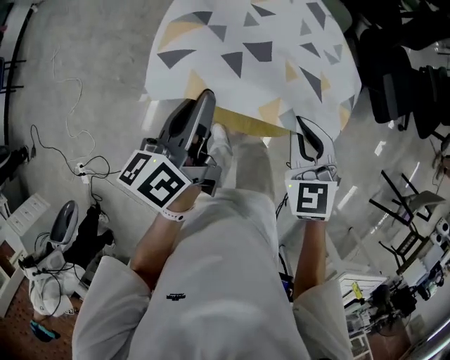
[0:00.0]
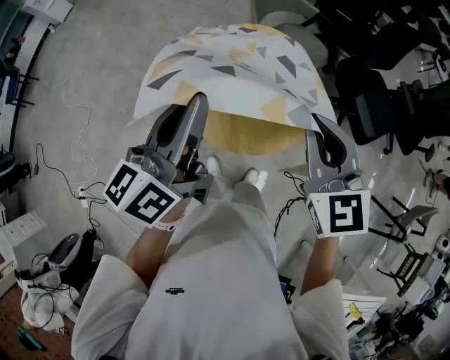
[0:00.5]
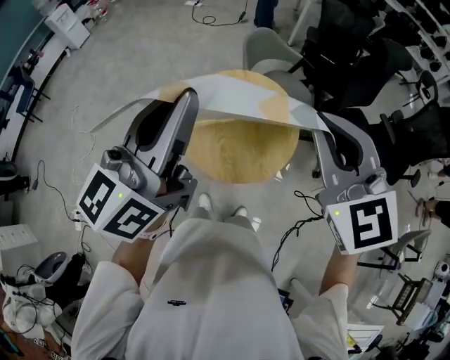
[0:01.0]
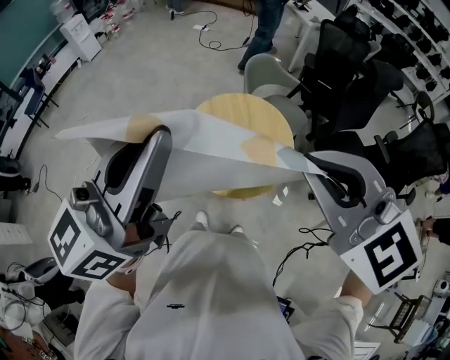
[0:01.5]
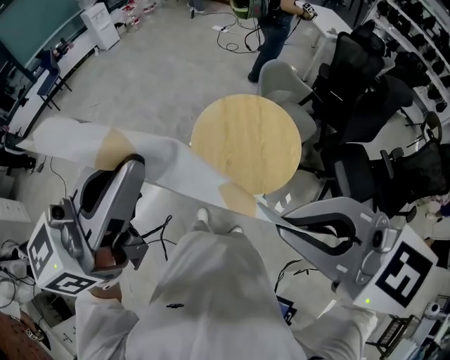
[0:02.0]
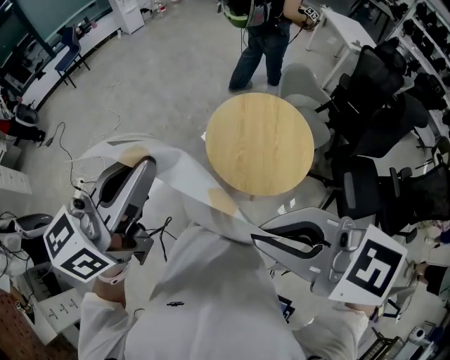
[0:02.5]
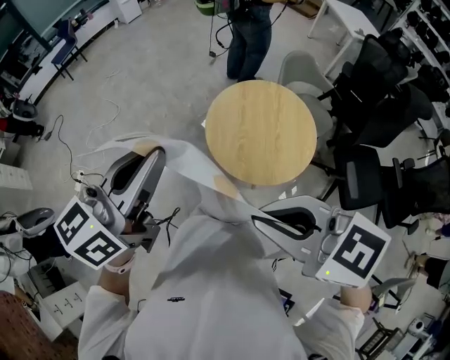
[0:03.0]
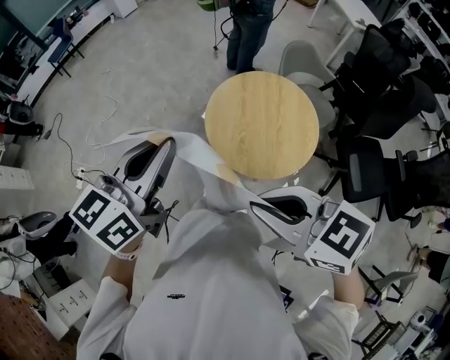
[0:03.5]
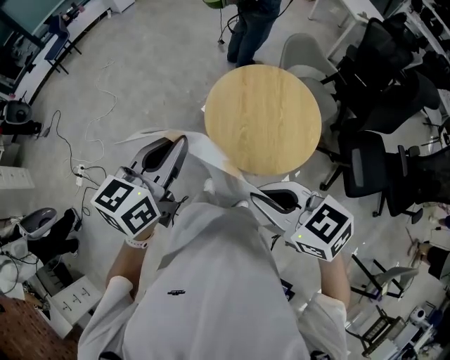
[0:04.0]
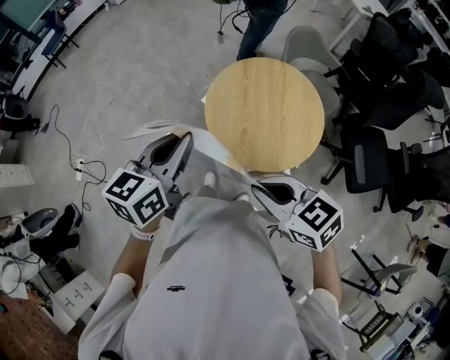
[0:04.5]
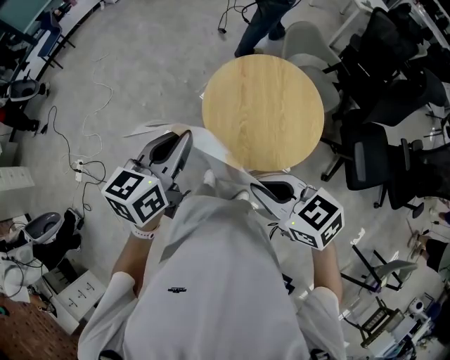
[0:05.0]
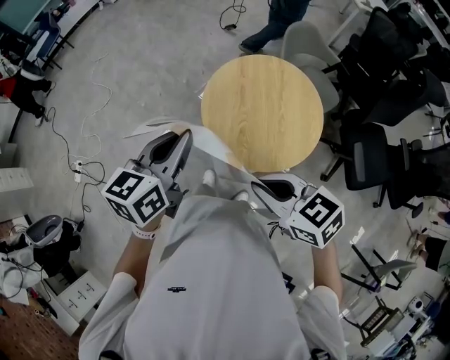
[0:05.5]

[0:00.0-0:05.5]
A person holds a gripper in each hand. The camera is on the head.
0:00.0 to 0:02.0: Both grippers travel together upward, approximately 40 cm. The left gripper turns by approximately 40 degrees. The right gripper changes its angle by some 50 degrees.
0:02.0 to 0:03.5: Both grippers move downward, roughly 15 cm. The left gripper turns by some 30 degrees.
0:03.5 to 0:05.5: Both grippers travel together downward and forward, roughly 15 cm.

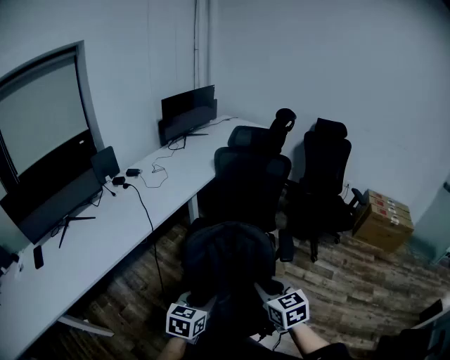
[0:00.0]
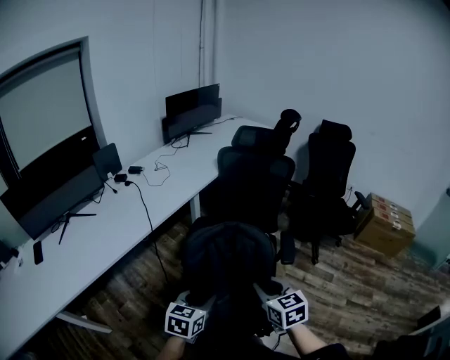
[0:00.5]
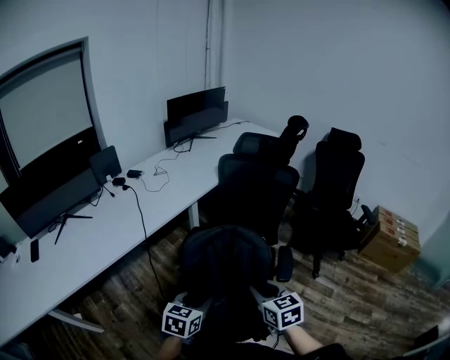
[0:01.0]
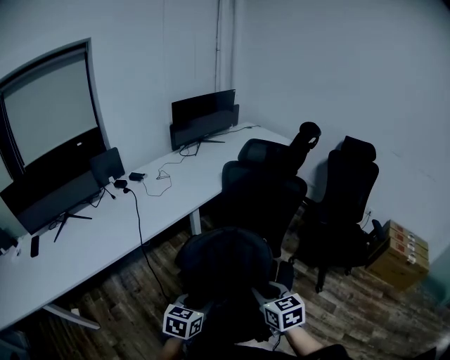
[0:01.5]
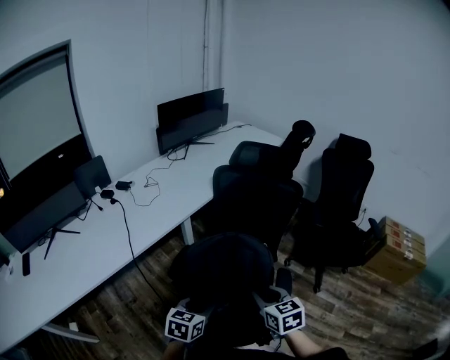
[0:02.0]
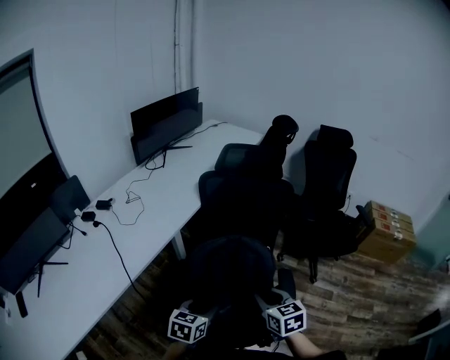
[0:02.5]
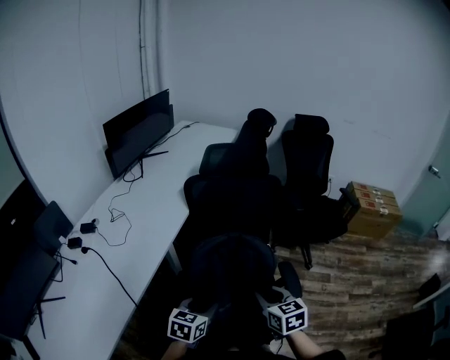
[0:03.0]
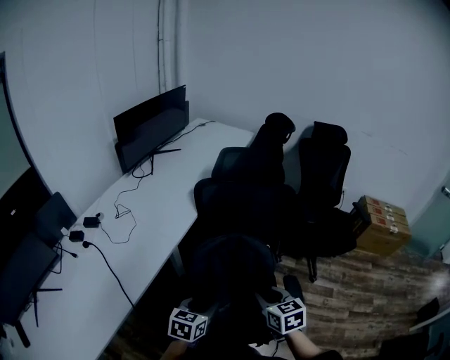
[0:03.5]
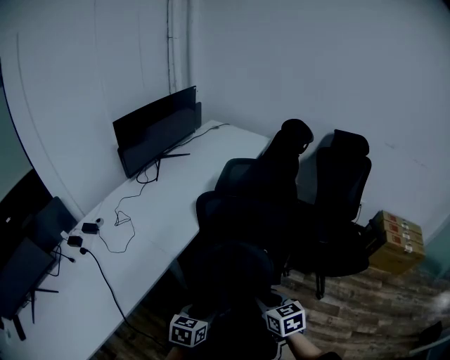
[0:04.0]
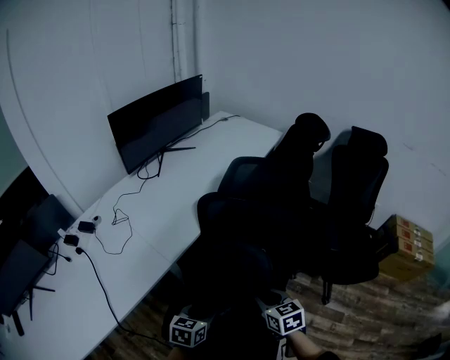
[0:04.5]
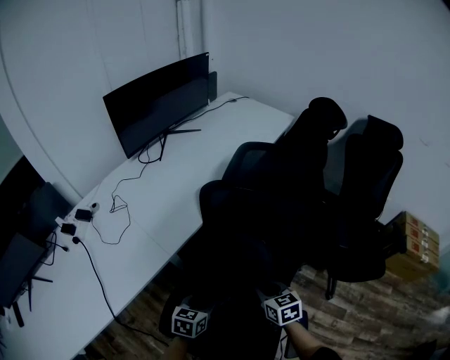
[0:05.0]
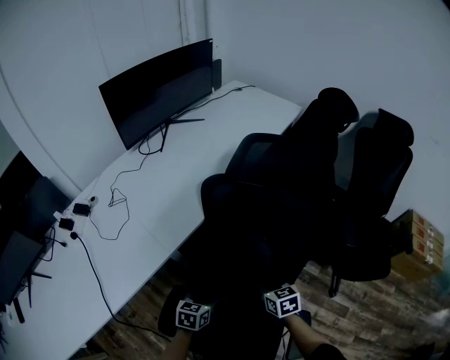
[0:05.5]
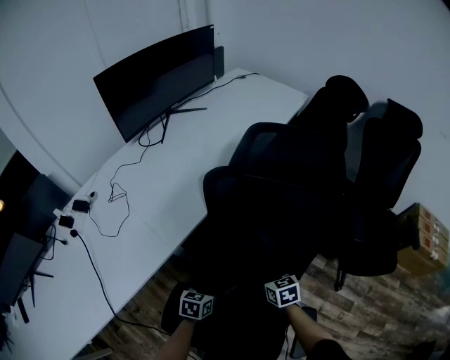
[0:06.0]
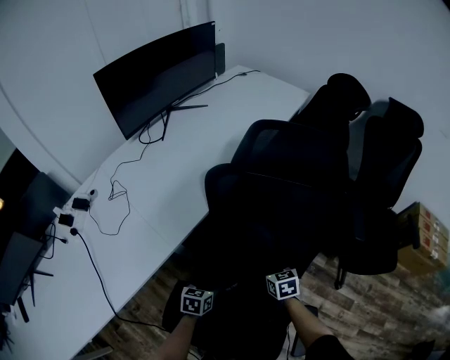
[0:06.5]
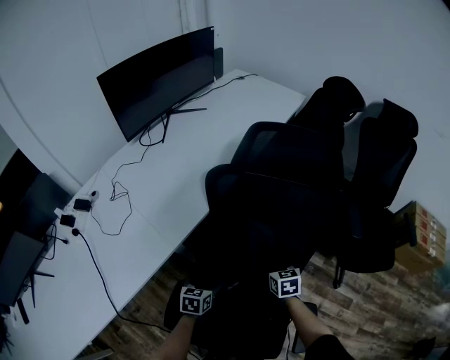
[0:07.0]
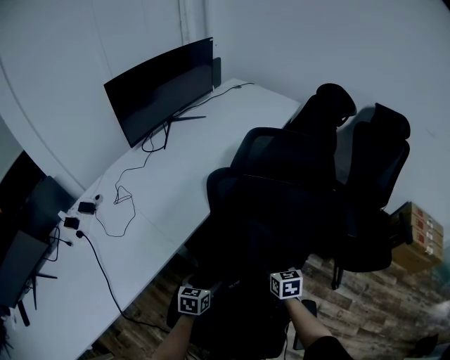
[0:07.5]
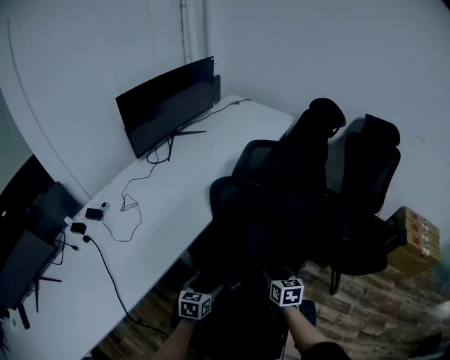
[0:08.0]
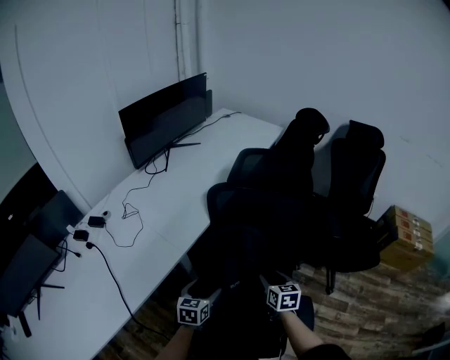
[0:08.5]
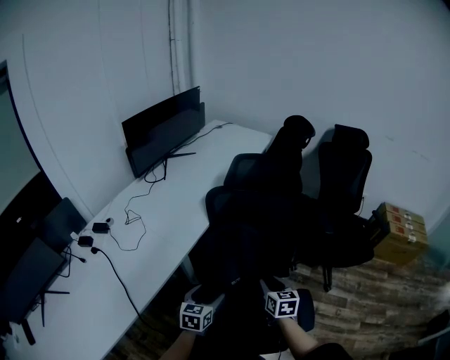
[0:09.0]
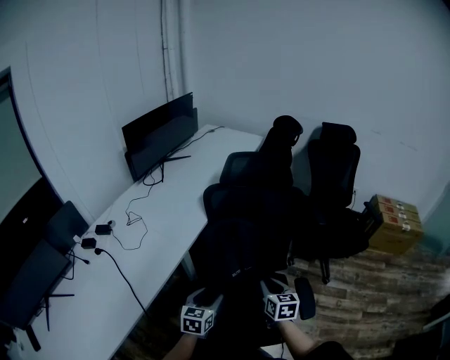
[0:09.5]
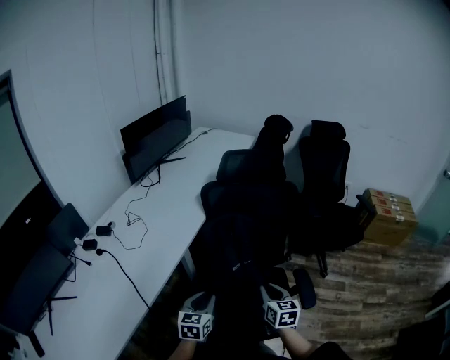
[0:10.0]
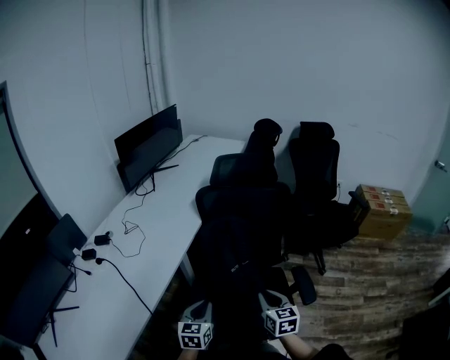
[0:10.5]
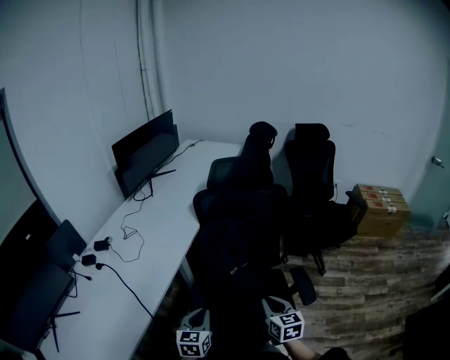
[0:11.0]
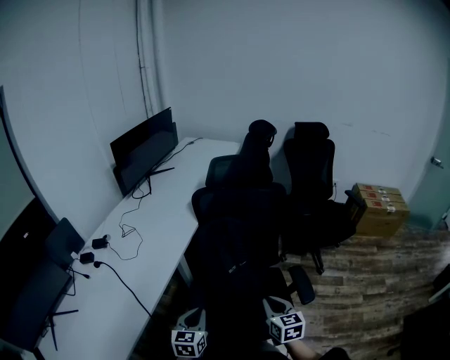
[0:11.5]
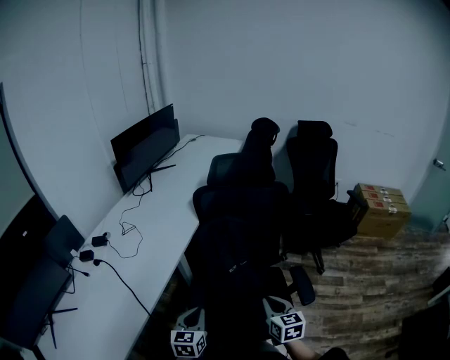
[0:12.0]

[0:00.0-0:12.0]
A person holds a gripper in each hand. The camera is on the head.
0:00.0 to 0:02.0: The right gripper moves forward, roughly 25 cm, while the left gripper moves forward and to the right, some 25 cm.
0:02.0 to 0:04.0: The two grippers go some 25 cm forward.
0:04.0 to 0:06.0: The grippers both shift downward and forward by roughly 30 cm.
0:06.0 to 0:08.0: Both grippers move upward, about 10 cm. The left gripper opens up. Meanwhile the right gripper opens up.
0:08.0 to 0:10.0: The left gripper heads backward and upward, covering about 25 cm, and closes its fingers, while the right gripper goes about 30 cm backward, and closes.
0:10.0 to 0:12.0: Both grippers move backward, about 5 cm.

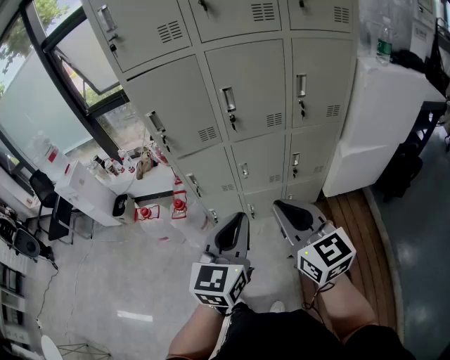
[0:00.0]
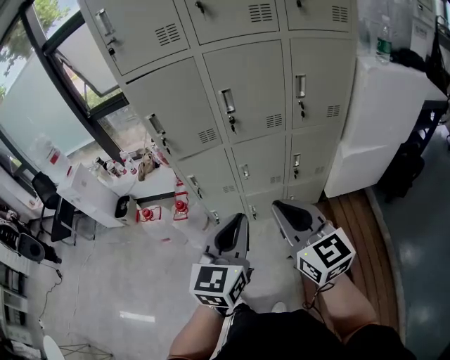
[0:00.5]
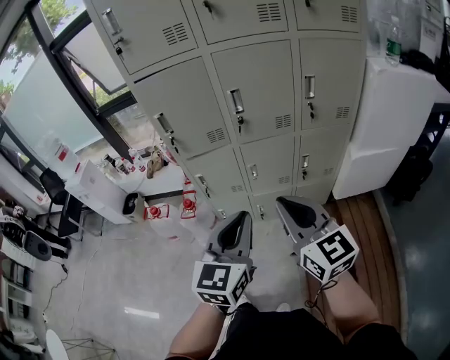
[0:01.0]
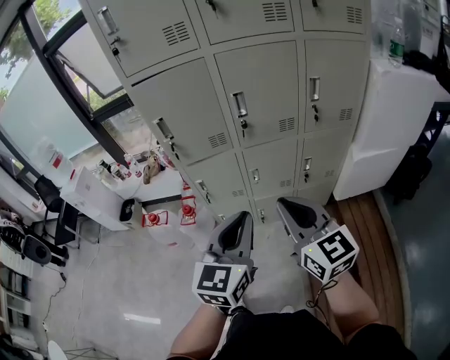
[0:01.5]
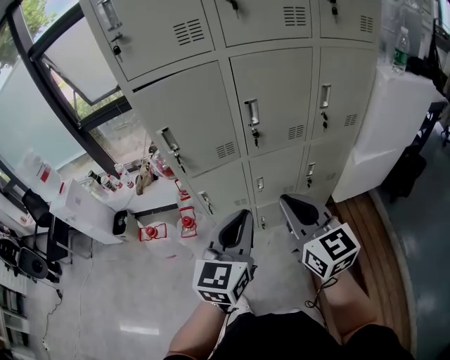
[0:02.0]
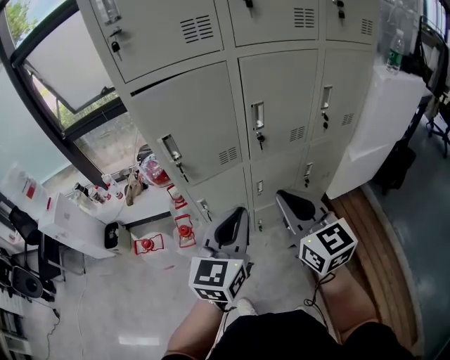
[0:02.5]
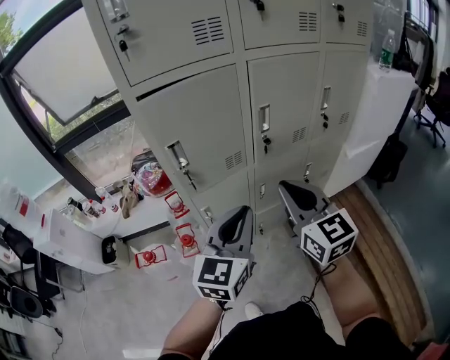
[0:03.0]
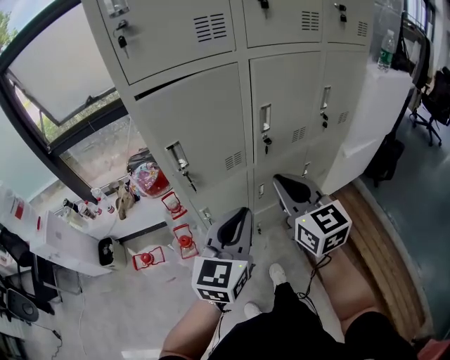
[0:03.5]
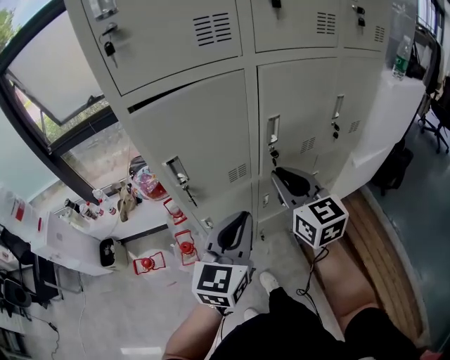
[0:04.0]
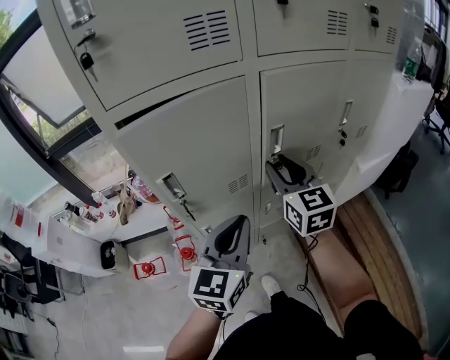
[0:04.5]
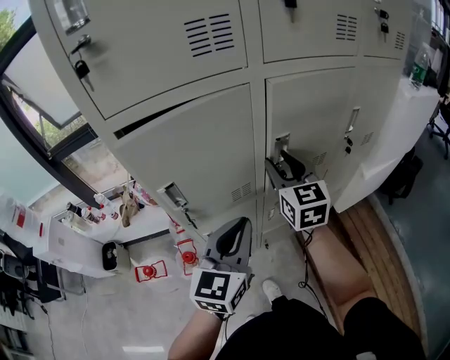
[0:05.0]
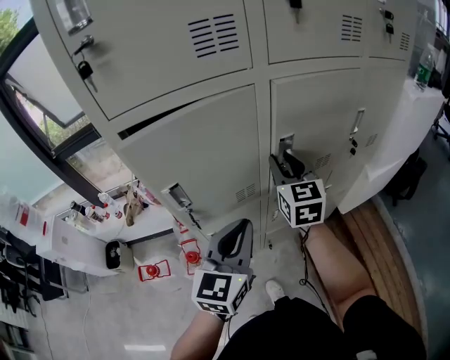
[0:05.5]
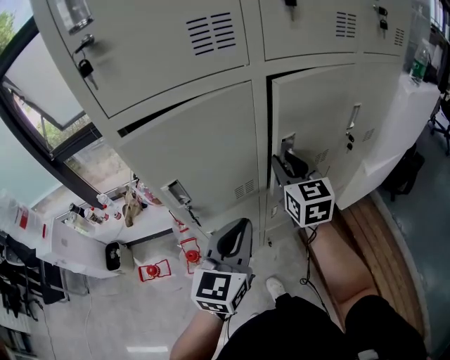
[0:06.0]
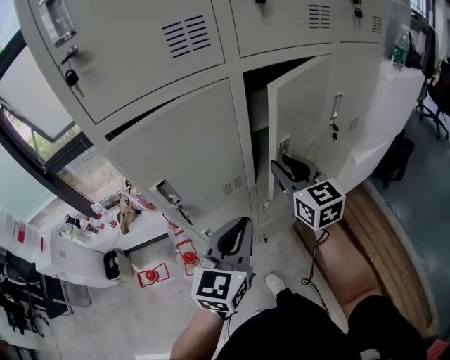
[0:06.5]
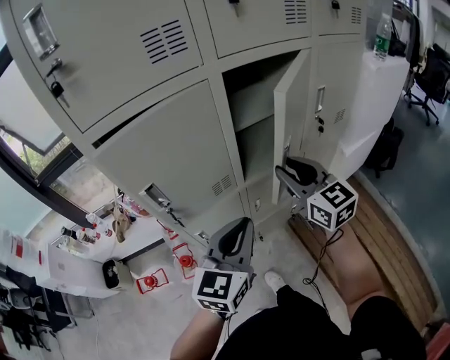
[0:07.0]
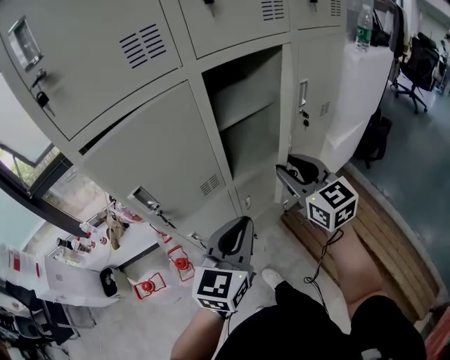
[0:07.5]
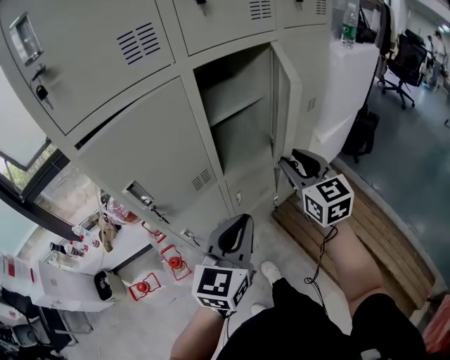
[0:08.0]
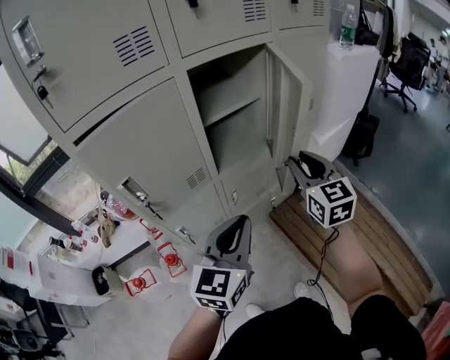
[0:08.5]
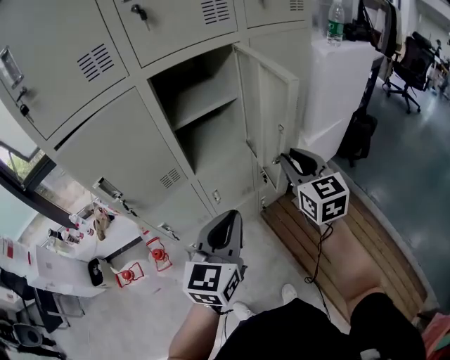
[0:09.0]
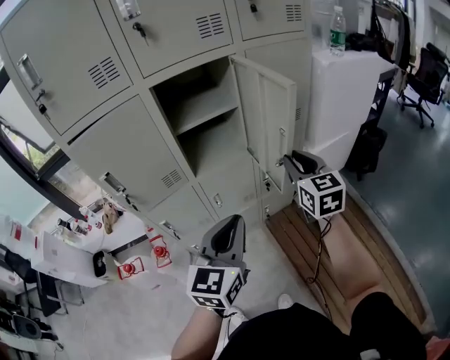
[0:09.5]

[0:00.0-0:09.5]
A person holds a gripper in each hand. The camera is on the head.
0:00.0 to 0:02.0: Both grippers travel together forward and to the left, approximately 15 cm.
0:02.0 to 0:04.0: The two grippers go roughly 15 cm forward and to the left.
0:04.0 to 0:05.5: The right gripper shifts about 15 cm forward. Meanwhile the left gripper goes some 5 cm forward.
0:05.5 to 0:07.5: The left gripper travels to the right by some 5 cm. Meanwhile the right gripper goes roughly 15 cm backward and to the right.
0:07.5 to 0:09.5: The two grippers go roughly 20 cm to the right.
